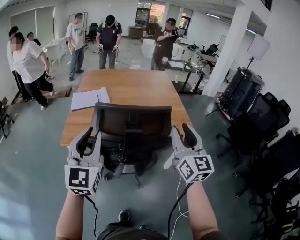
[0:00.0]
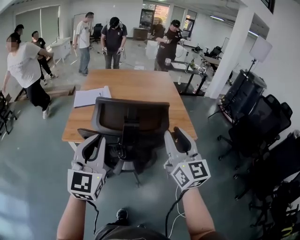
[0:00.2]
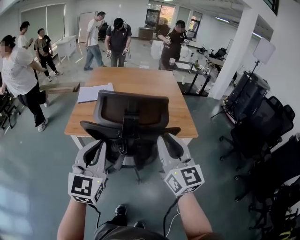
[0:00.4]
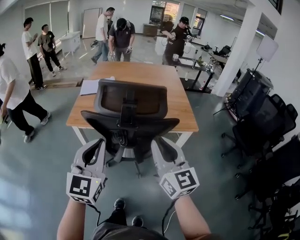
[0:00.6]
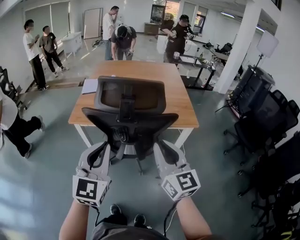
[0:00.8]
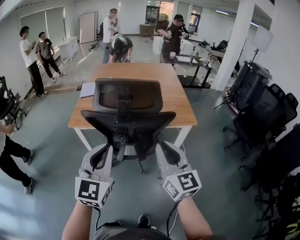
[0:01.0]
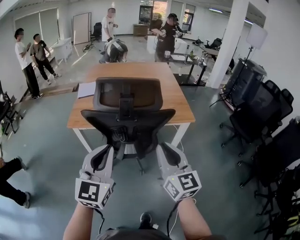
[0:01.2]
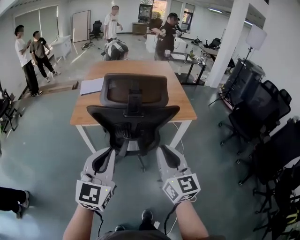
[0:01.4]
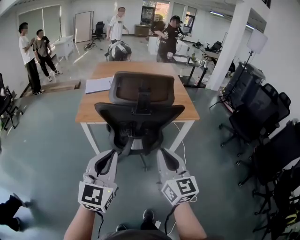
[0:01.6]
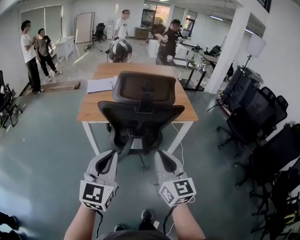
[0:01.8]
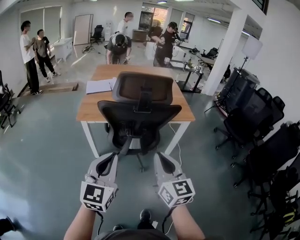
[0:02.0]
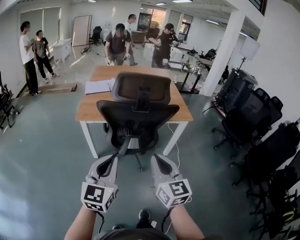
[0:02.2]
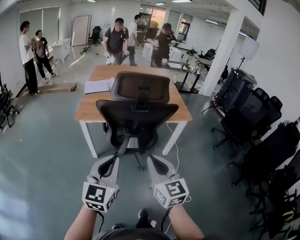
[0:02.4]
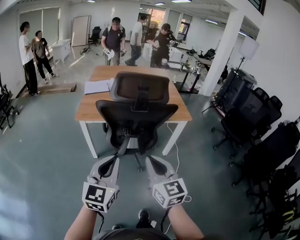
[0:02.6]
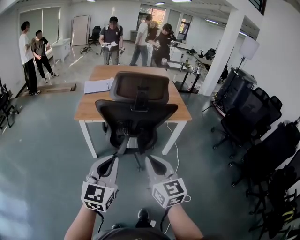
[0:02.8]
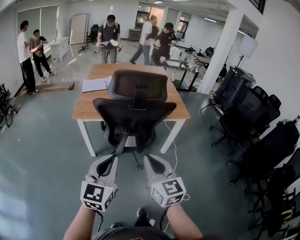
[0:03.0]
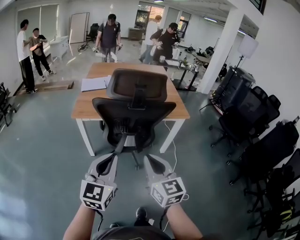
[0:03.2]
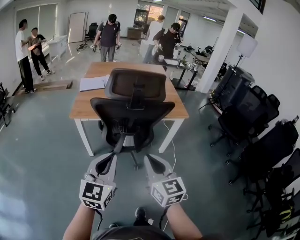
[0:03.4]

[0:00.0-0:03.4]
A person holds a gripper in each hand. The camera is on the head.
0:00.0 to 0:01.6: The right gripper travels backward and to the left by some 25 cm, and closes. The left gripper moves backward, some 20 cm.
0:01.6 to 0:03.4: The right gripper heads backward, covering about 5 cm; the left gripper changes place by approximately 5 cm.

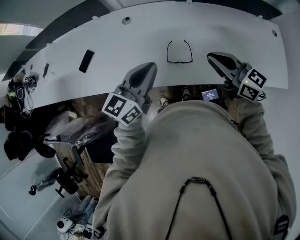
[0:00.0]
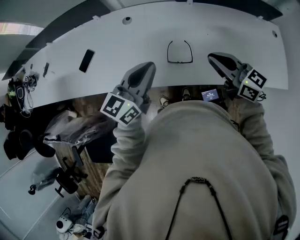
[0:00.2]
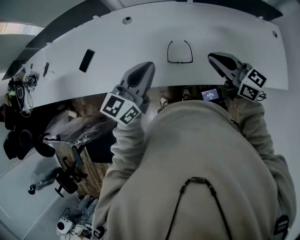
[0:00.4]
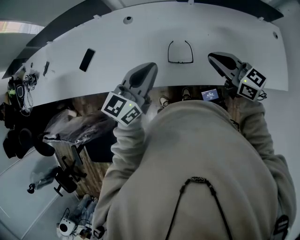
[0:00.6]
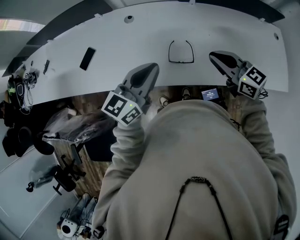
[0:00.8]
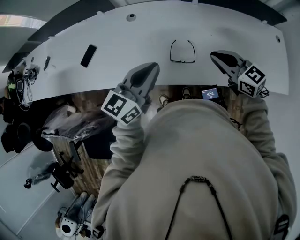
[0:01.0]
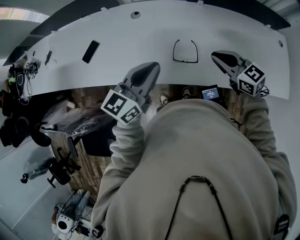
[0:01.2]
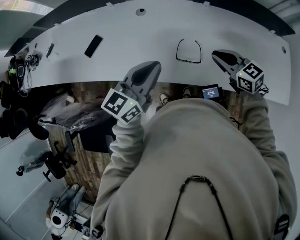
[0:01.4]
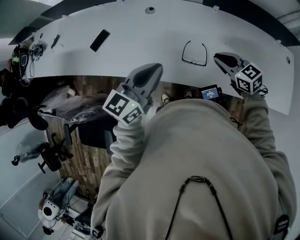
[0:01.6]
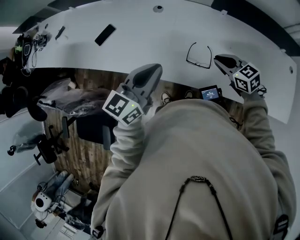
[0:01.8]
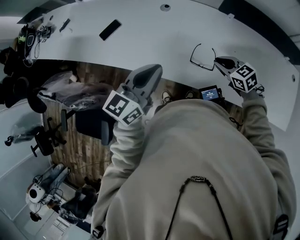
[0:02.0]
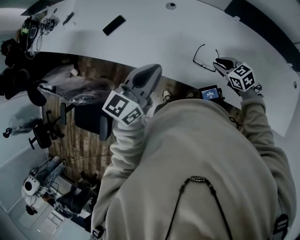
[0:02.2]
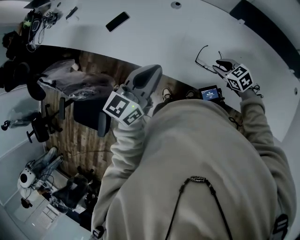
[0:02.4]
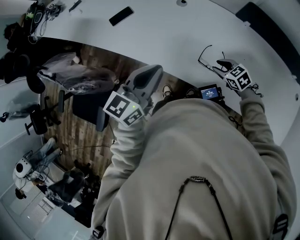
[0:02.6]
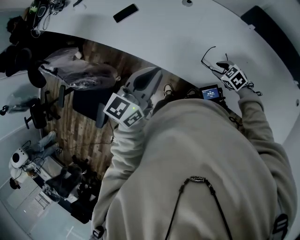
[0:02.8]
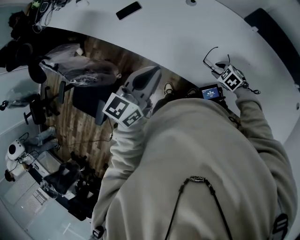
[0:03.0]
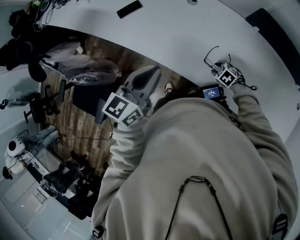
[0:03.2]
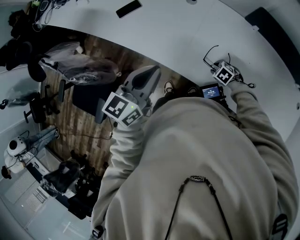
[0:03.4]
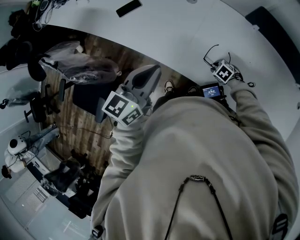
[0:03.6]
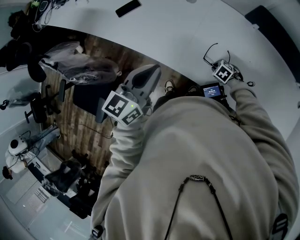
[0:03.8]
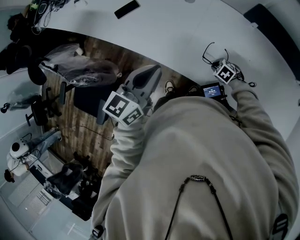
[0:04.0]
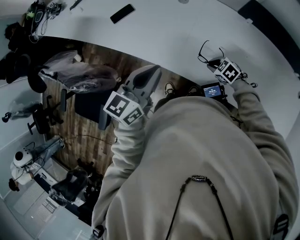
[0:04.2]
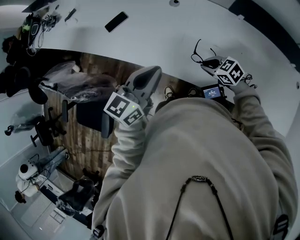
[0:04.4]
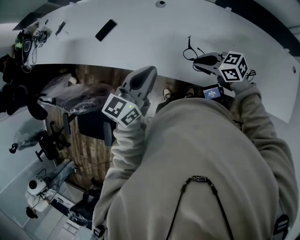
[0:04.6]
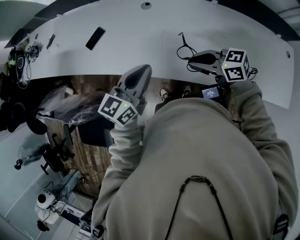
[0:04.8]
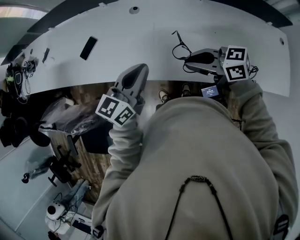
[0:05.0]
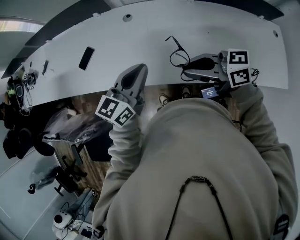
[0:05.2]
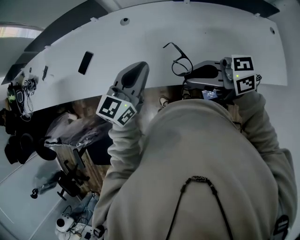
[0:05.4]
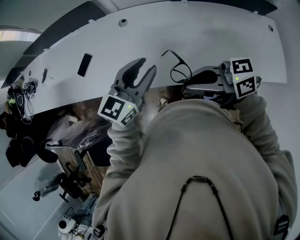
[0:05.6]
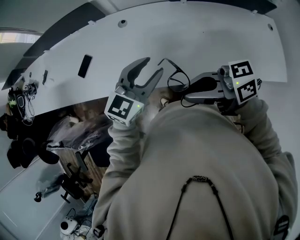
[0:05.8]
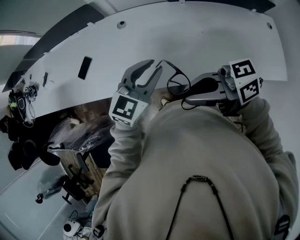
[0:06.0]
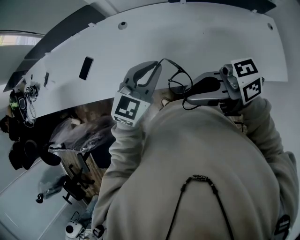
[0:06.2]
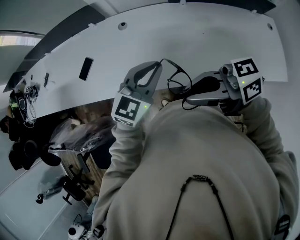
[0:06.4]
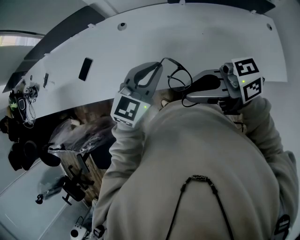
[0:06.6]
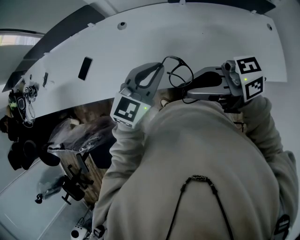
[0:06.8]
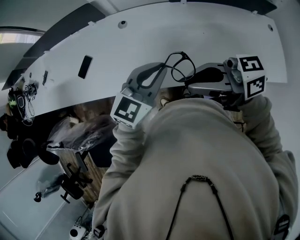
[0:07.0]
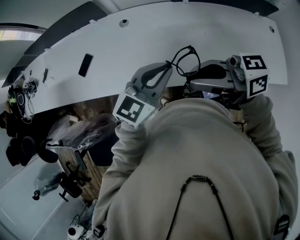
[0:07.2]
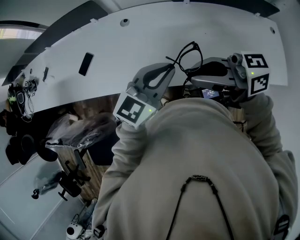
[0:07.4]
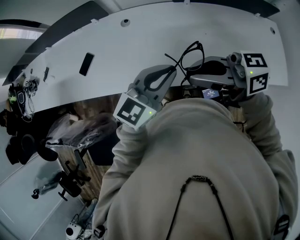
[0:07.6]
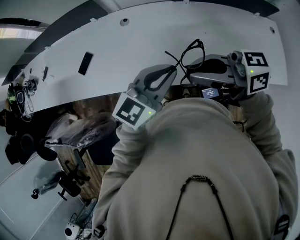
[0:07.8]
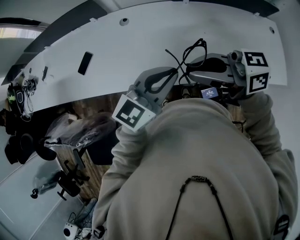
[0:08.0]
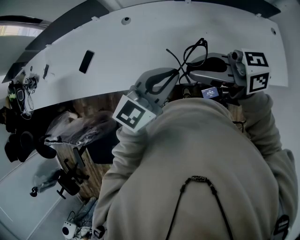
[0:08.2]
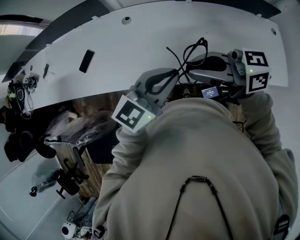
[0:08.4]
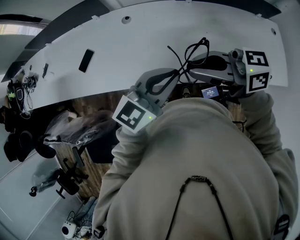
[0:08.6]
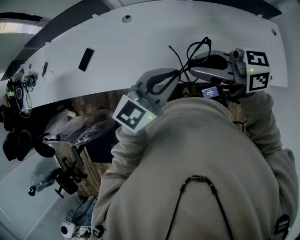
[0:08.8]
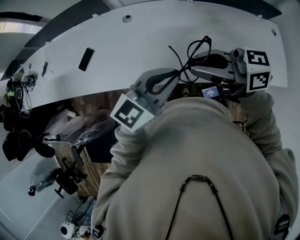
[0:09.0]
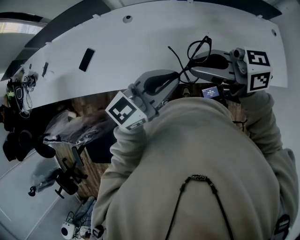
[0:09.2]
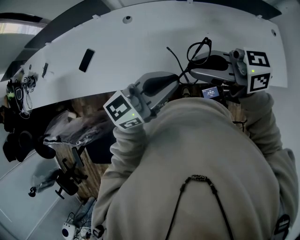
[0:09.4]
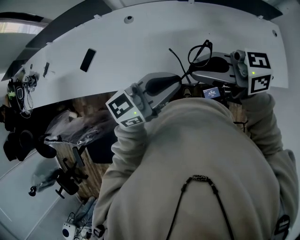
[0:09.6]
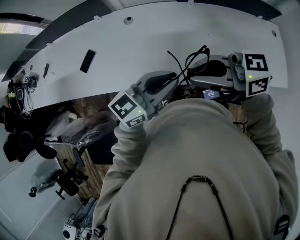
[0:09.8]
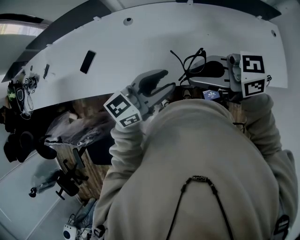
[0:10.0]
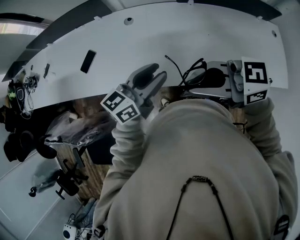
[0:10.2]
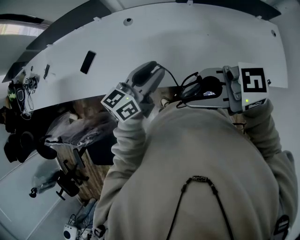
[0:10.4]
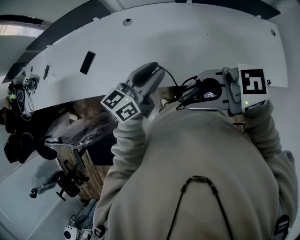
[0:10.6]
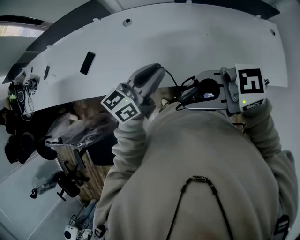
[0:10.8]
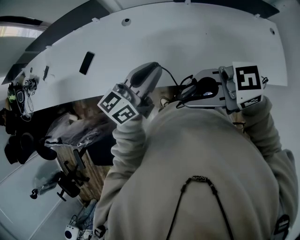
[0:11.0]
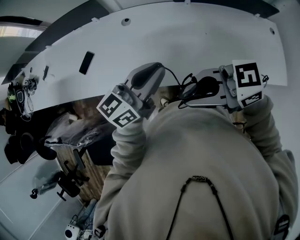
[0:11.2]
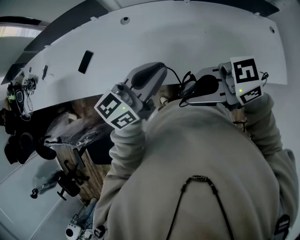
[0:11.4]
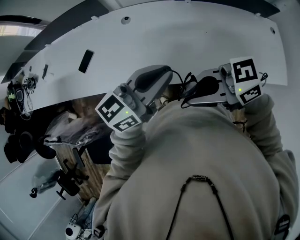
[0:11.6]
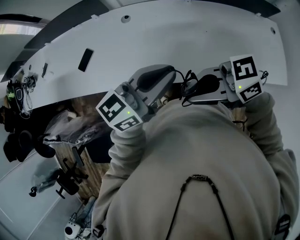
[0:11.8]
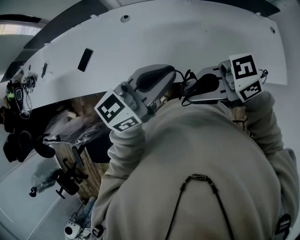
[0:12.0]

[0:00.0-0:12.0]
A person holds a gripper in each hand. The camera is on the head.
0:00.0 to 0:01.6: The right gripper shifts about 10 cm downward, and turns by roughly 30 degrees.
0:01.6 to 0:03.0: The right gripper moves downward, approximately 20 cm, points its fingers roughly 30 degrees further downward, and opens up. The left gripper travels to the left by approximately 10 cm, and swivels approximately 20 degrees.
0:03.0 to 0:04.4: The right gripper travels upward by roughly 10 cm, turns by about 20 degrees, and closes.
0:04.4 to 0:06.0: The left gripper shifts by some 15 cm, turns by about 40 degrees, and opens its fingers. The right gripper moves upward, approximately 30 cm, and points its fingers about 50 degrees further upward.
0:06.0 to 0:07.6: The left gripper shifts by some 5 cm, and closes up, while the right gripper moves about 5 cm.
0:07.6 to 0:09.0: The grippers move only a little.
0:09.0 to 0:10.4: The right gripper ends up approximately 10 cm from where it was, and changes its angle by some 20 degrees, while the left gripper changes place by some 10 cm, changes its angle by about 30 degrees, and opens.
0:10.4 to 0:12.0: The left gripper shifts about 10 cm upward, and closes up.

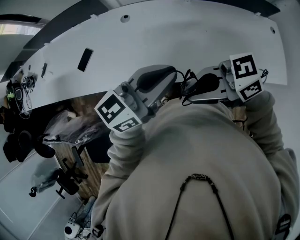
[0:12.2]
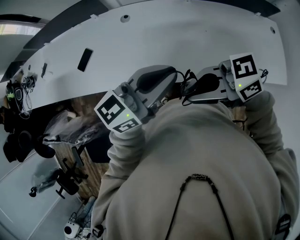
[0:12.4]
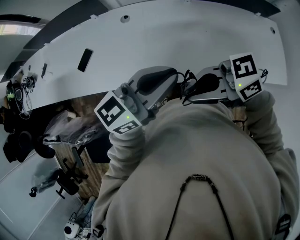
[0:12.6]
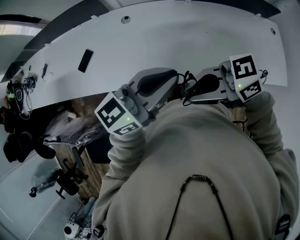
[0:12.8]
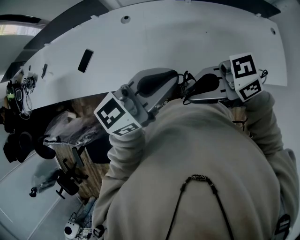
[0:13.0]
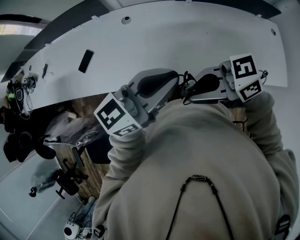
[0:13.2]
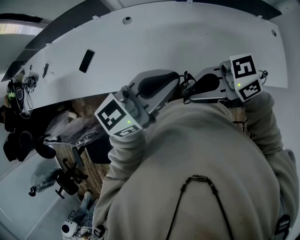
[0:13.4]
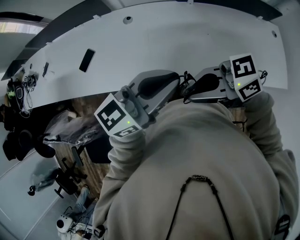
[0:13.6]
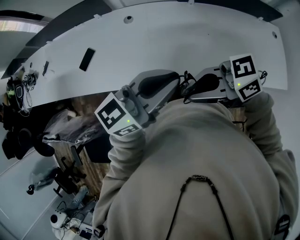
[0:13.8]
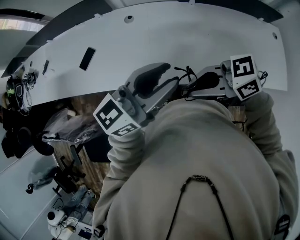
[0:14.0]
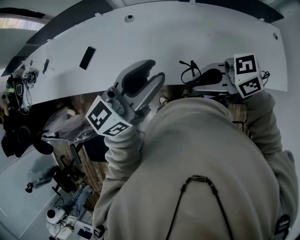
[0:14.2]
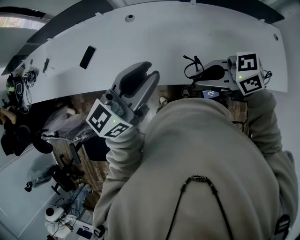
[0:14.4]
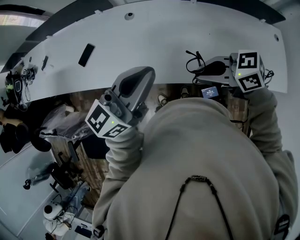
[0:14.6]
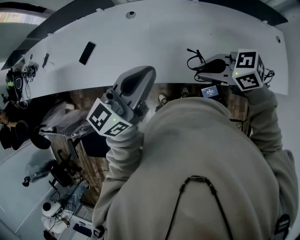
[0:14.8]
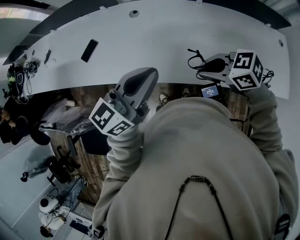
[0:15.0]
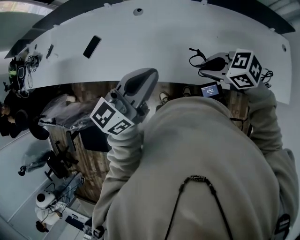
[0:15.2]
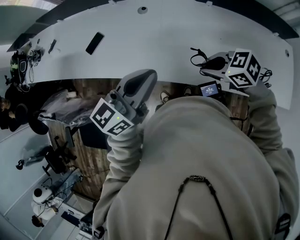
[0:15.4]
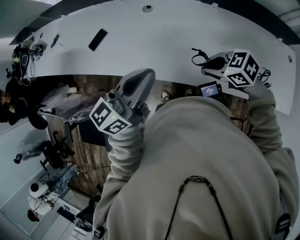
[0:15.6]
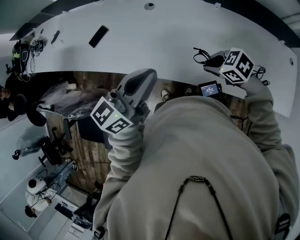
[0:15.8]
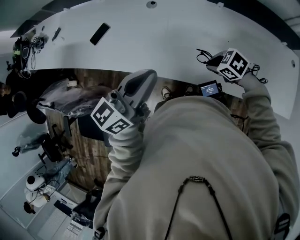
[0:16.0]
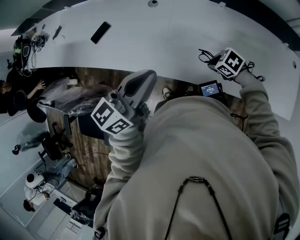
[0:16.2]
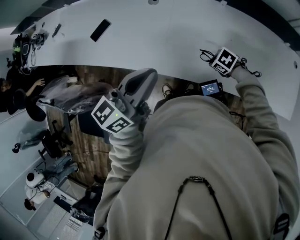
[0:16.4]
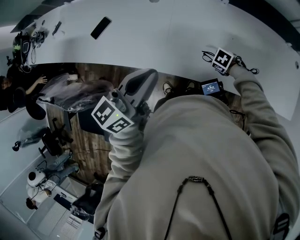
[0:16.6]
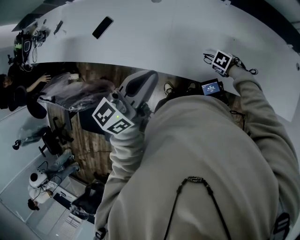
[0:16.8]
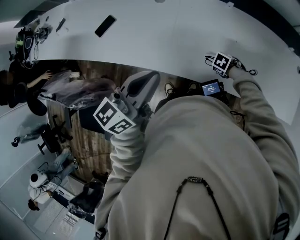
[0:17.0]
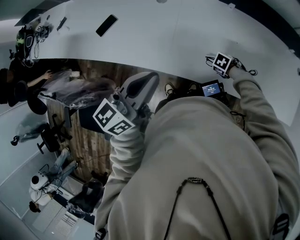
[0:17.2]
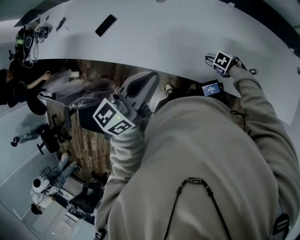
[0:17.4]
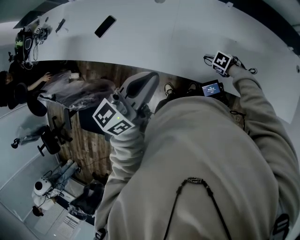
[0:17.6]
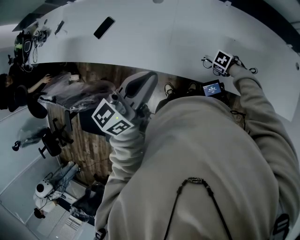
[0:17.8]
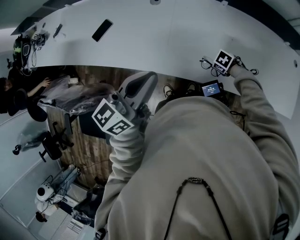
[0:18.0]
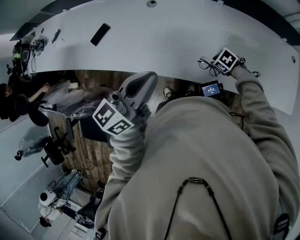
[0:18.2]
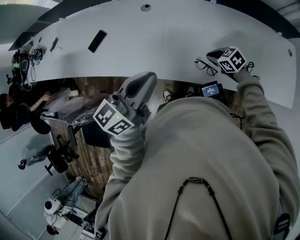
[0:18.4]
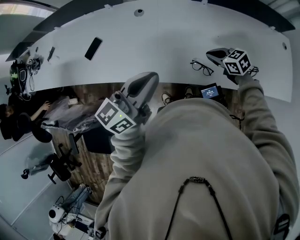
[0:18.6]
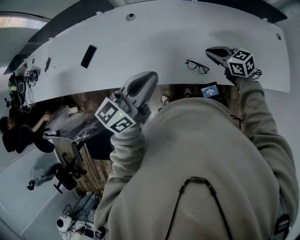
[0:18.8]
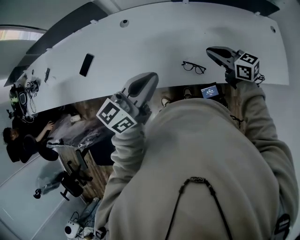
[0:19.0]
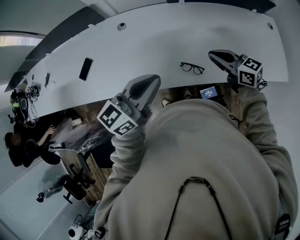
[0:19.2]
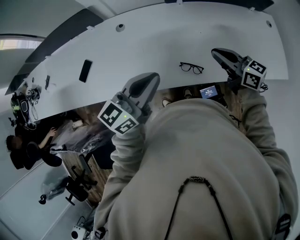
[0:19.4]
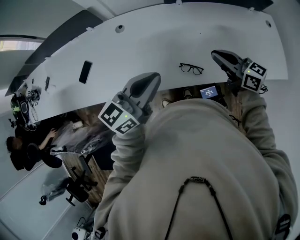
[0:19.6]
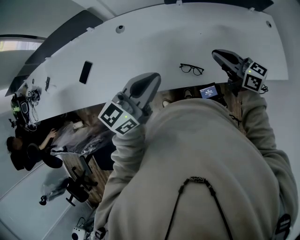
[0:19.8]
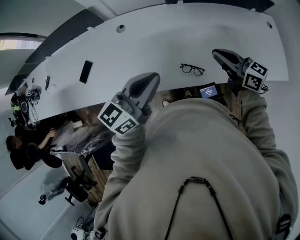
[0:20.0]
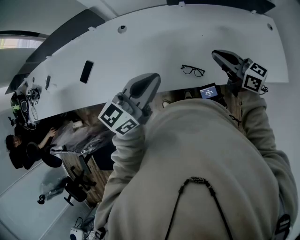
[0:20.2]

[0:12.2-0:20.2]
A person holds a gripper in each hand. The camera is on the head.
0:12.2 to 0:13.8: There are only small adjustments of the grippers.
0:13.8 to 0:15.4: The right gripper shifts some 10 cm downward, and tips its fingers downward by approximately 30 degrees, while the left gripper ends up some 10 cm from where it was, rotates about 20 degrees, and opens, then closes again.
0:15.4 to 0:17.0: The right gripper goes approximately 30 cm downward, and angles its fingers downward, by about 30 degrees.
0:17.0 to 0:18.6: The right gripper is displaced upward by about 15 cm, and angles its fingers upward, by some 40 degrees.
0:18.6 to 0:20.2: The right gripper heads upward, covering roughly 15 cm, and tips its fingers upward by some 30 degrees, while the left gripper shifts roughly 5 cm to the right.
